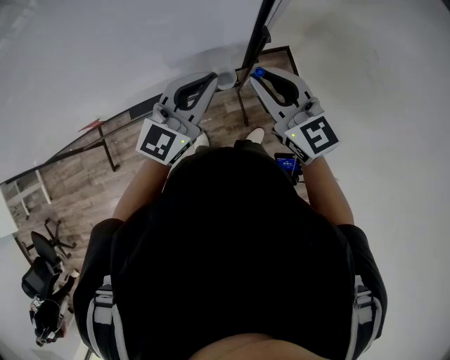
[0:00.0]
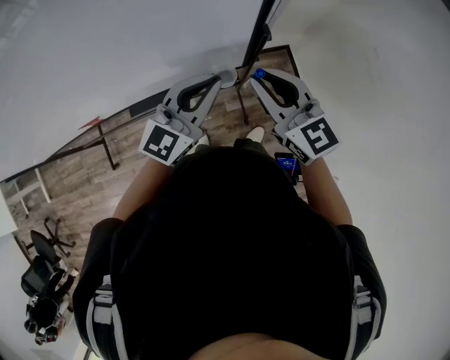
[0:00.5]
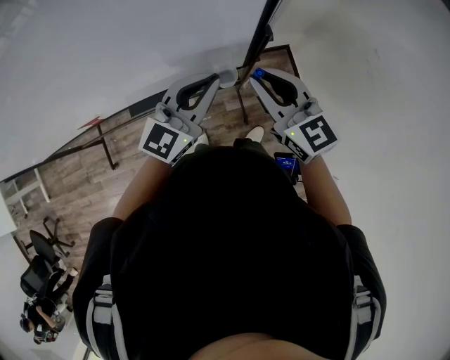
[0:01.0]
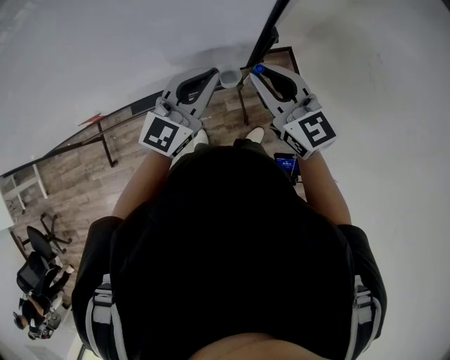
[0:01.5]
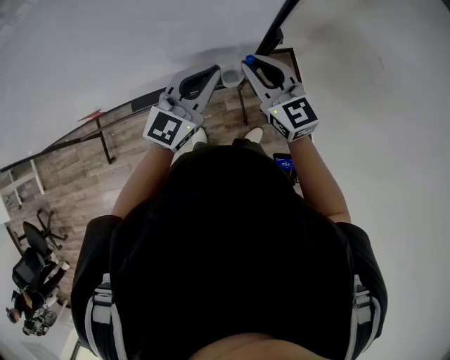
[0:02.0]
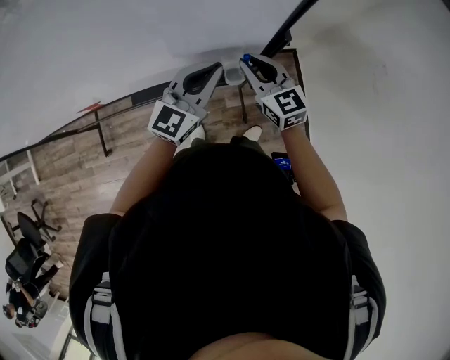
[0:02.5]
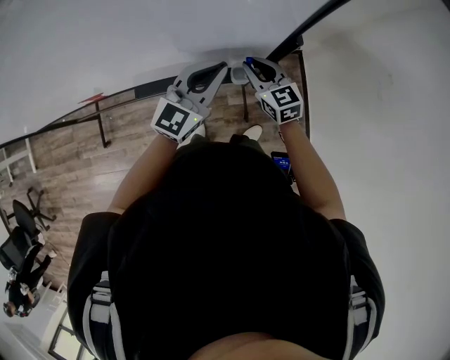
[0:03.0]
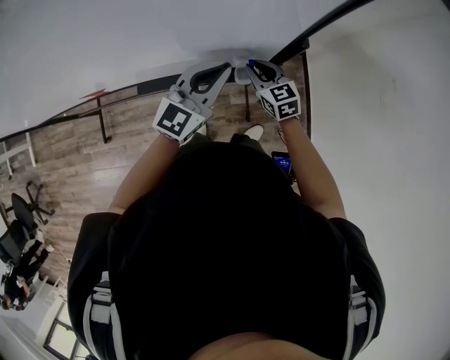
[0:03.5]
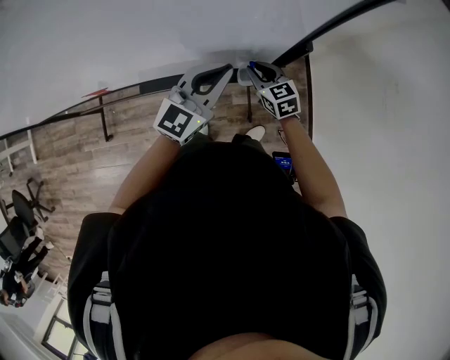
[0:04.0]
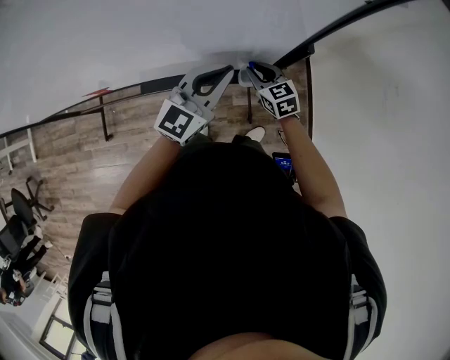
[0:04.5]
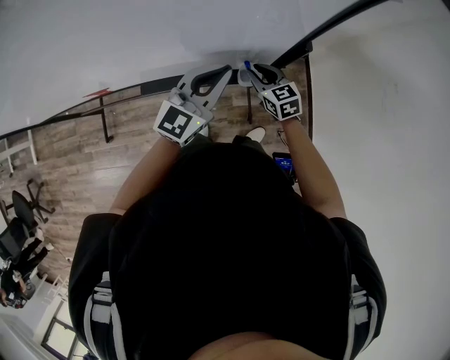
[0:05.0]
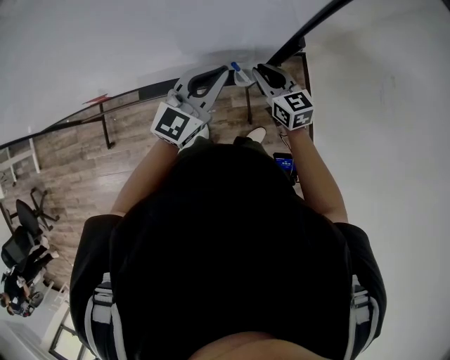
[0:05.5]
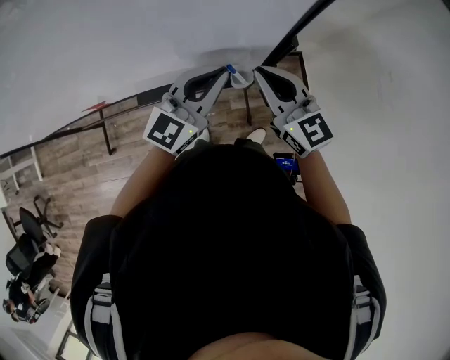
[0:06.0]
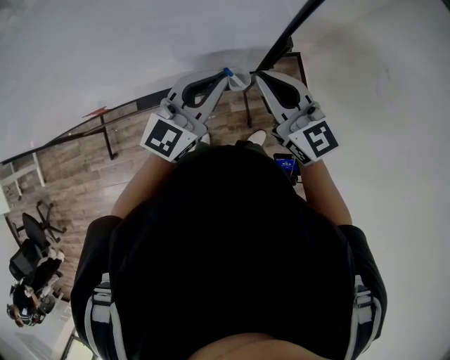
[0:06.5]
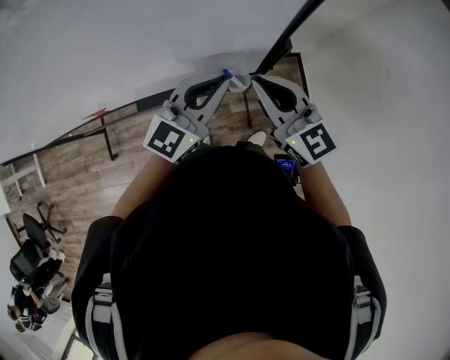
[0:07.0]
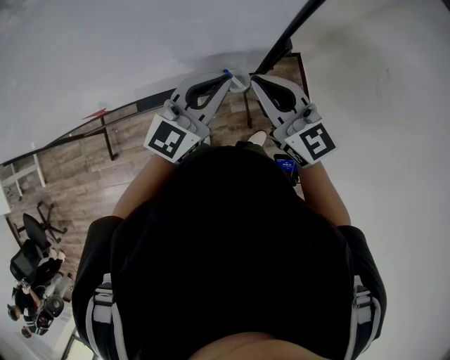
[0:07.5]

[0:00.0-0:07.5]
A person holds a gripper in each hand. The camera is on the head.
0:00.0 to 0:02.0: The right gripper shifts by roughly 5 cm.
0:02.0 to 0:04.0: The right gripper travels downward by approximately 20 cm, and swivels roughly 20 degrees.
0:04.0 to 0:05.5: The right gripper moves upward, some 5 cm.
0:05.5 to 0:07.5: The left gripper goes roughly 5 cm upward; the right gripper heads upward, covering about 15 cm.

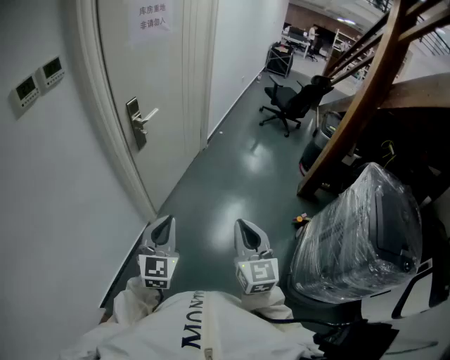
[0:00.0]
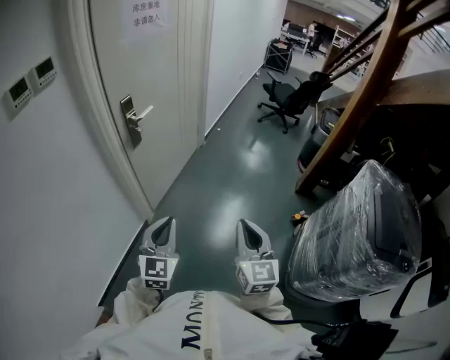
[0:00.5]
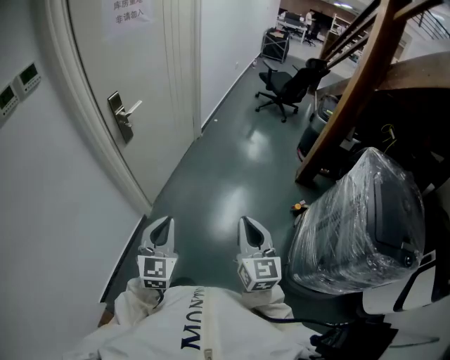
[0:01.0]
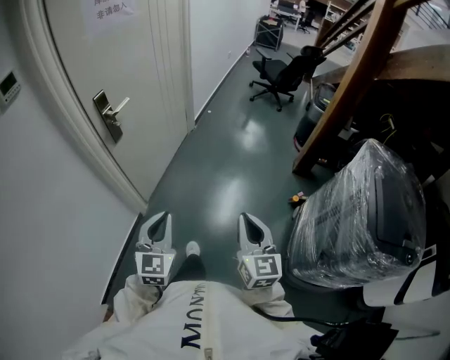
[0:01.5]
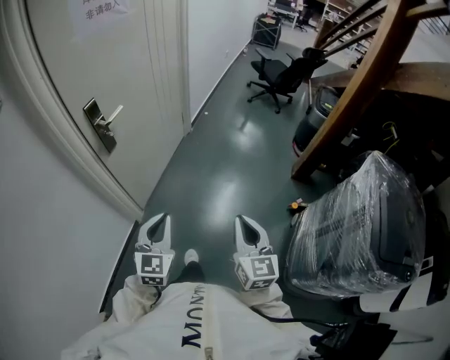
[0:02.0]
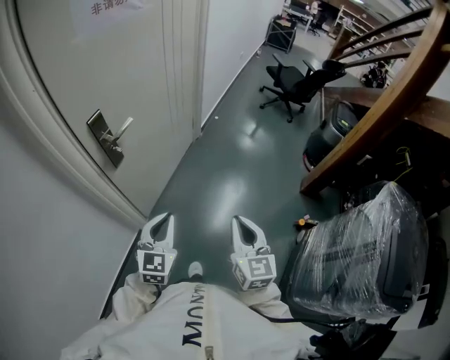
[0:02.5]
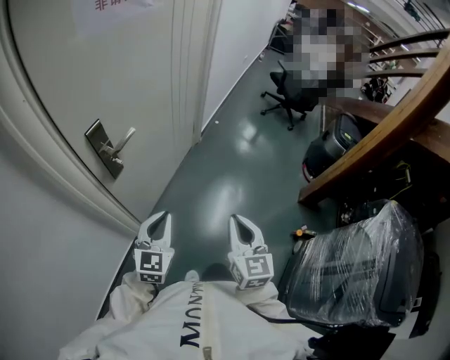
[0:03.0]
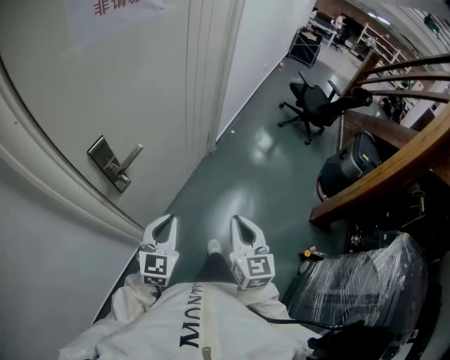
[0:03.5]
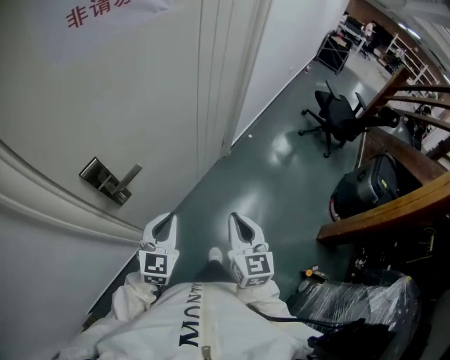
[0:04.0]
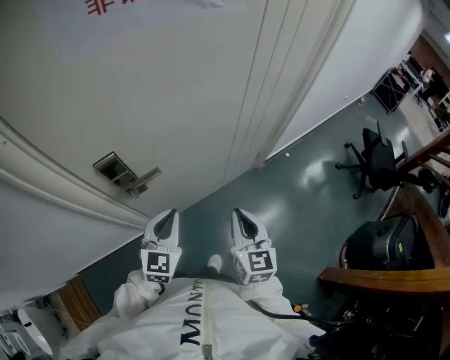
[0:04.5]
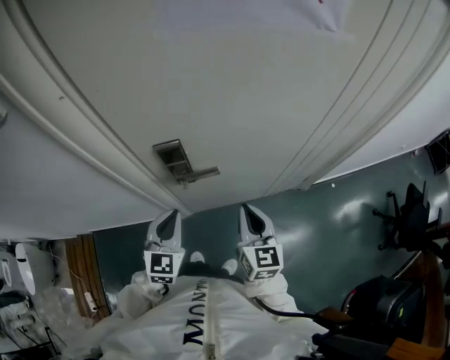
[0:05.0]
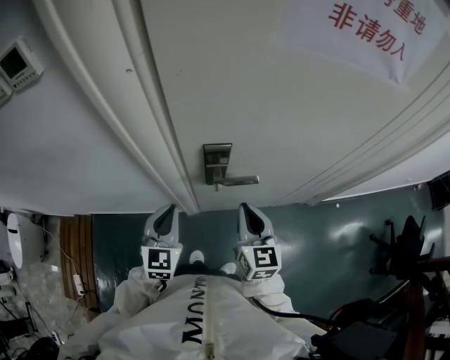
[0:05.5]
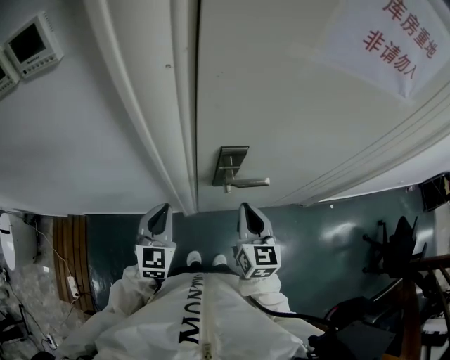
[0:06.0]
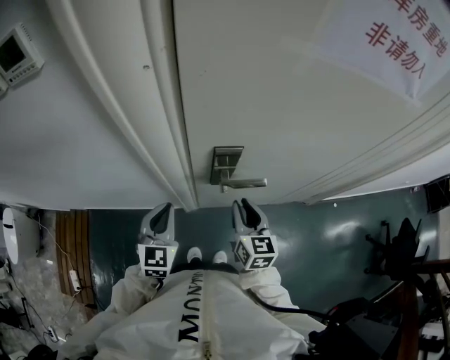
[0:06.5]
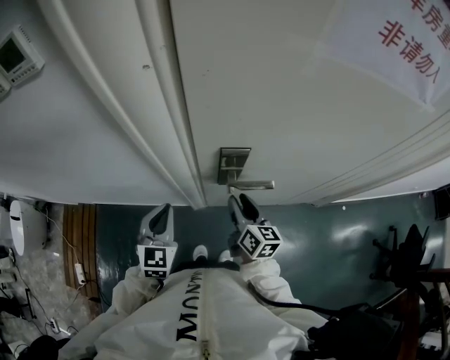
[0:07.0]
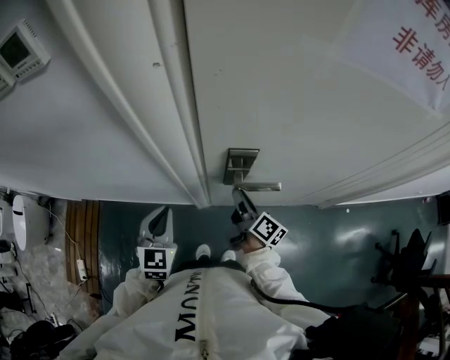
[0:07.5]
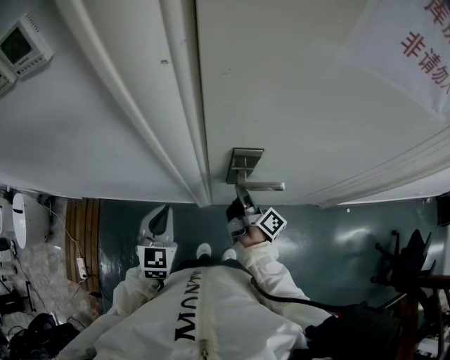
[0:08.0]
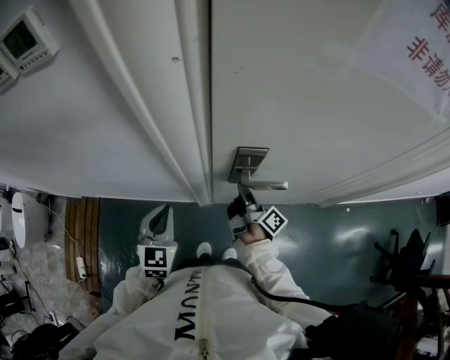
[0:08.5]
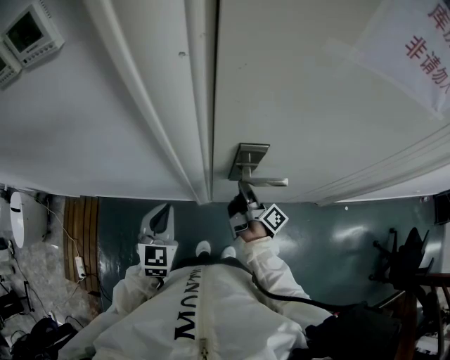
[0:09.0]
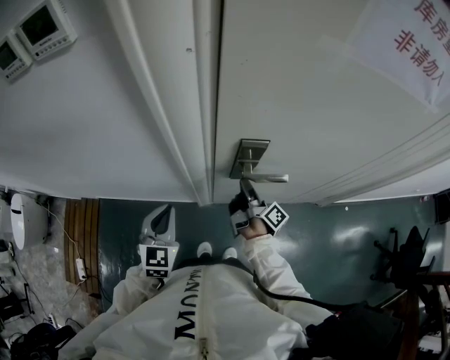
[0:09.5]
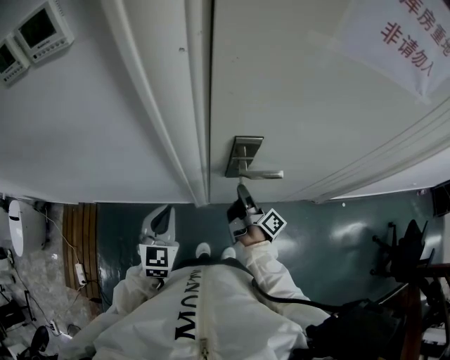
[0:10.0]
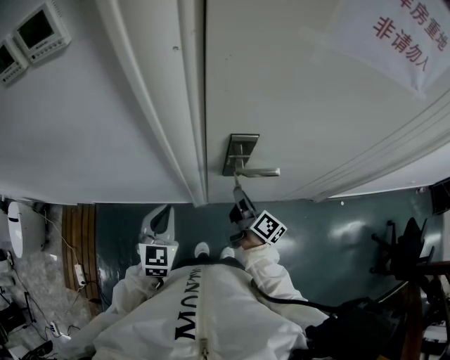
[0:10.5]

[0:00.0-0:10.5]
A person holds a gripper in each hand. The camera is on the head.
0:00.0 to 0:02.0: The left gripper travels forward, downward and to the right by approximately 15 cm, while the right gripper is displaced forward, to the right and downward by some 15 cm.
0:02.0 to 0:04.0: The grippers both shift forward by approximately 40 cm.
0:04.0 to 0:06.5: The left gripper moves approximately 25 cm, and changes its angle by some 50 degrees. The right gripper moves roughly 30 cm, and turns by some 50 degrees.
0:06.5 to 0:08.5: The right gripper moves downward and forward, some 10 cm, and rolls clockwise, seen from behind, by some 70 degrees. Meanwhile the left gripper travels to the left by approximately 5 cm.
0:08.5 to 0:10.5: The right gripper heads backward, covering some 5 cm, and turns by roughly 20 degrees.

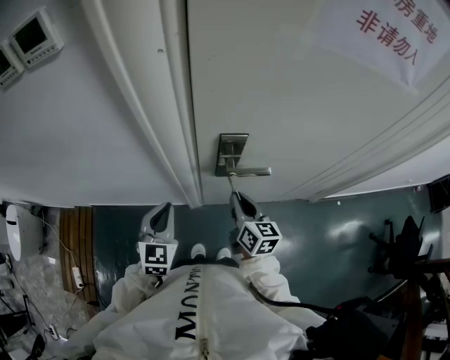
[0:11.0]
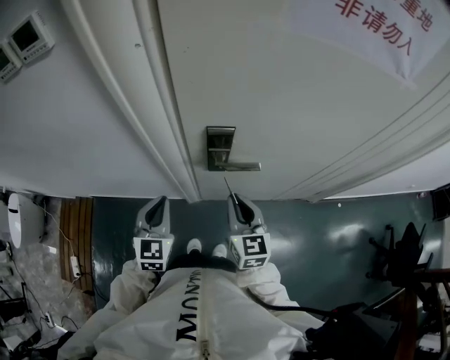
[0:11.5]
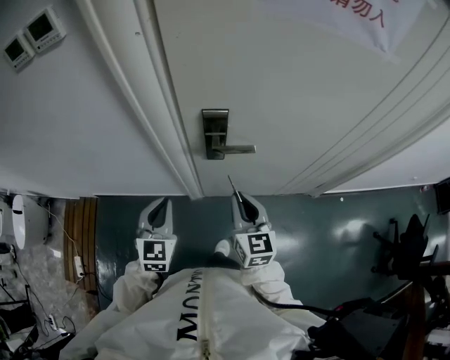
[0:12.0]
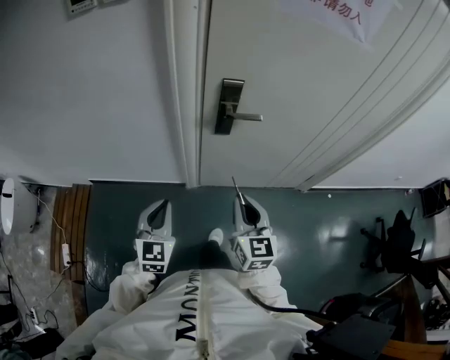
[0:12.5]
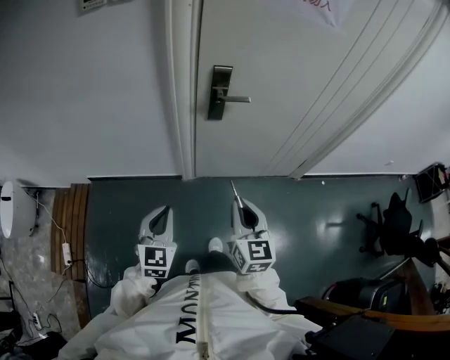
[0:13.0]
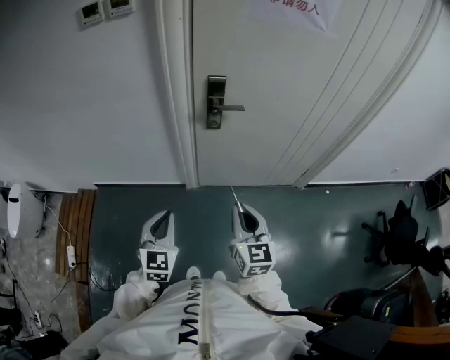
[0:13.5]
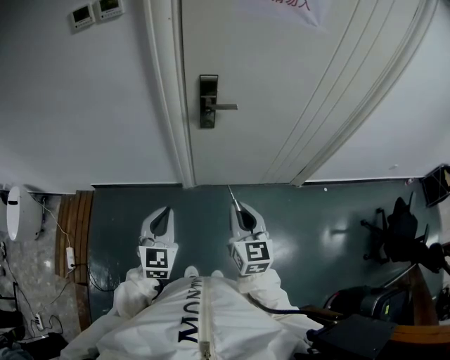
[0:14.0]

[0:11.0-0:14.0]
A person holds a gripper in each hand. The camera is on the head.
0:11.0 to 0:12.5: The two grippers go about 20 cm backward. The right gripper swivels some 20 degrees.
0:12.5 to 0:14.0: The right gripper heads backward, covering roughly 10 cm. The left gripper shifts roughly 10 cm backward and to the right.

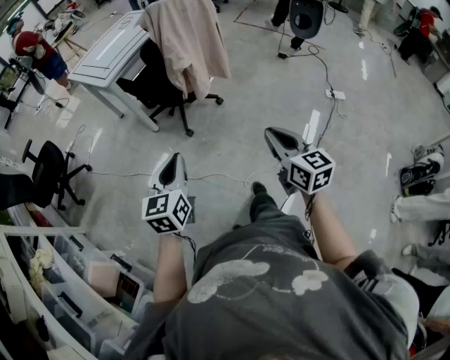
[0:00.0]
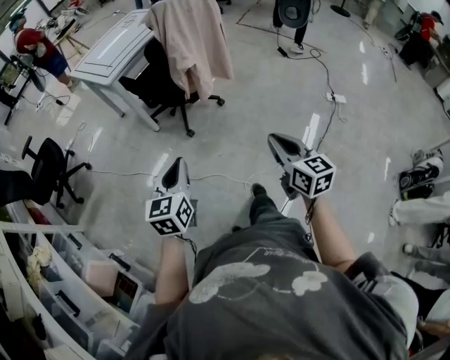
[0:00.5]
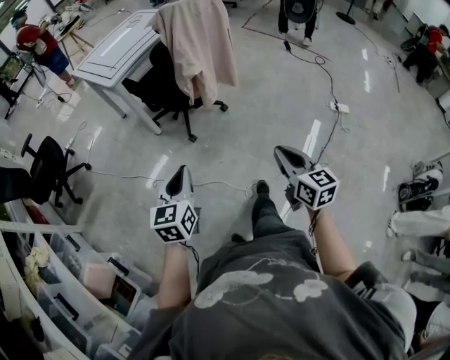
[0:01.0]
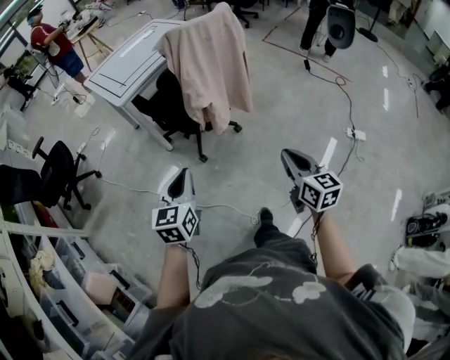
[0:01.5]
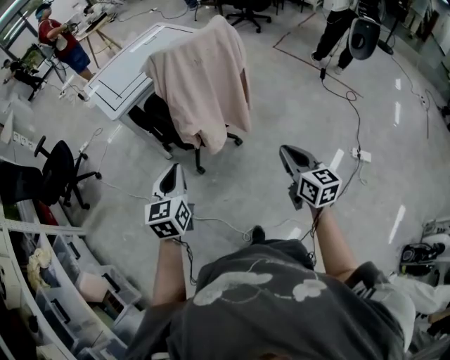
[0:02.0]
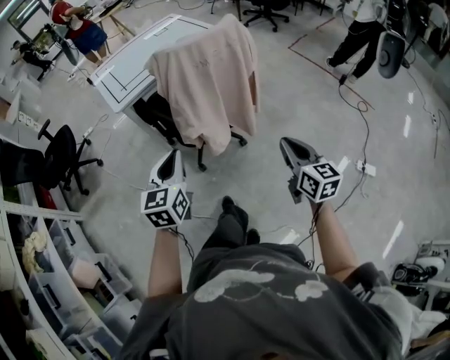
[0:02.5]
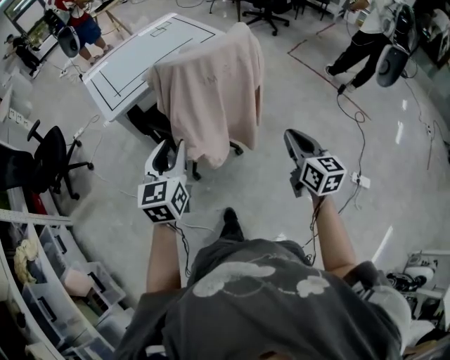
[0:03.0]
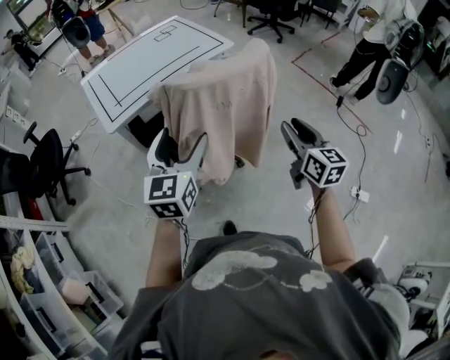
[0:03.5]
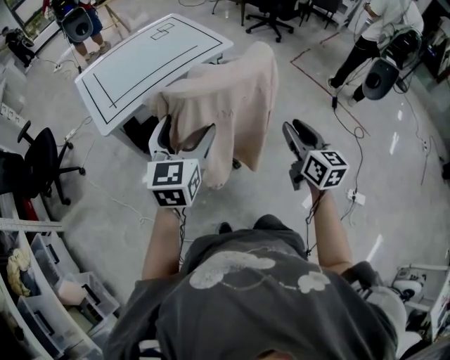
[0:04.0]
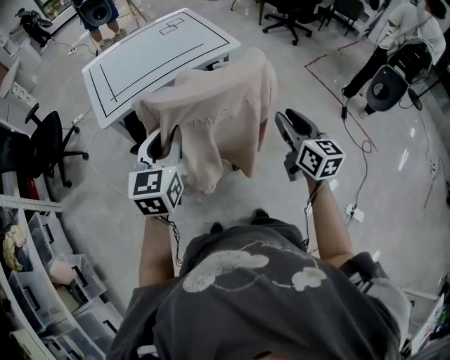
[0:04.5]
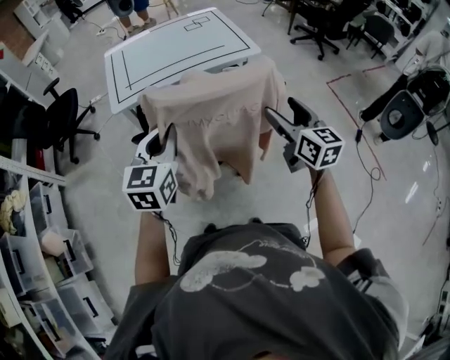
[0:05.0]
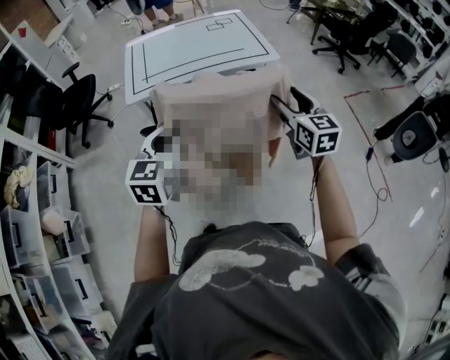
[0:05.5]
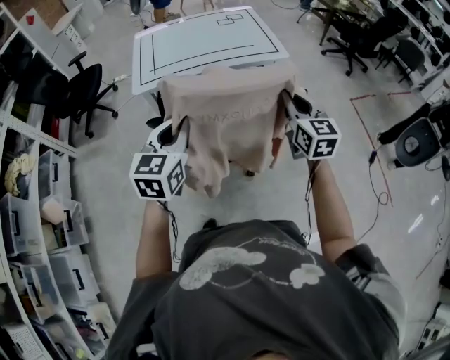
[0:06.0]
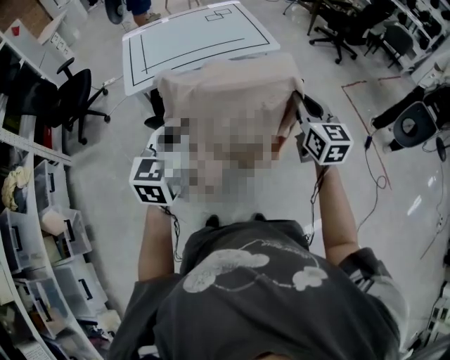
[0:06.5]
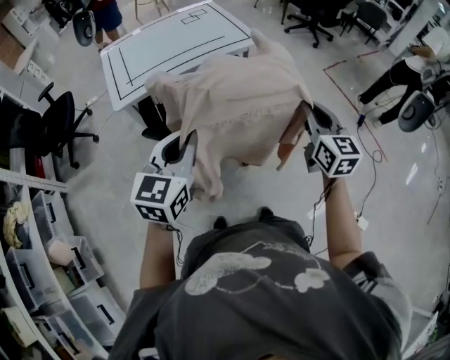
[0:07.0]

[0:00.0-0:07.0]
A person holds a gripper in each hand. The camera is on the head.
0:00.0 to 0:02.0: The left gripper heads forward, covering some 25 cm. The right gripper is displaced forward and to the right by some 35 cm.
0:02.0 to 0:03.5: The grippers both shift forward by about 25 cm. The right gripper opens up; the left gripper opens up.
0:03.5 to 0:05.0: The right gripper goes approximately 15 cm forward, swivels about 20 degrees, and opens up, while the left gripper moves roughly 5 cm, and closes its fingers.
0:05.0 to 0:07.0: The right gripper closes its fingers.
